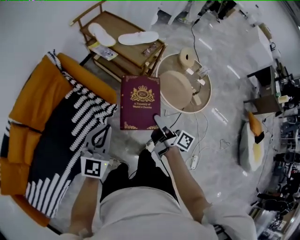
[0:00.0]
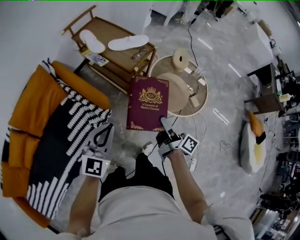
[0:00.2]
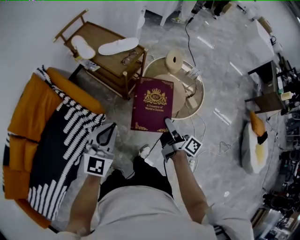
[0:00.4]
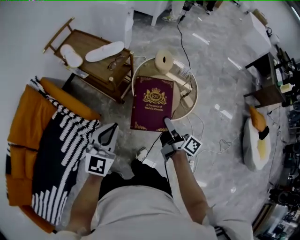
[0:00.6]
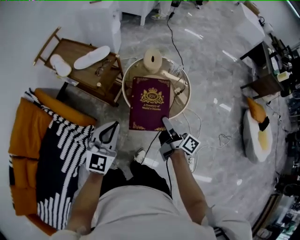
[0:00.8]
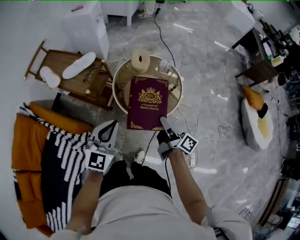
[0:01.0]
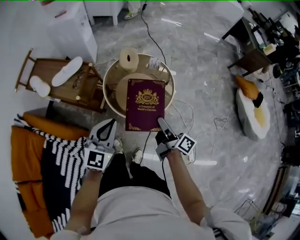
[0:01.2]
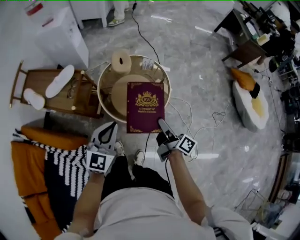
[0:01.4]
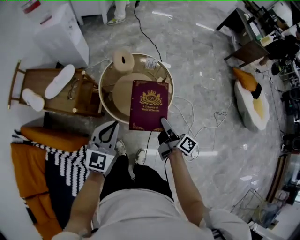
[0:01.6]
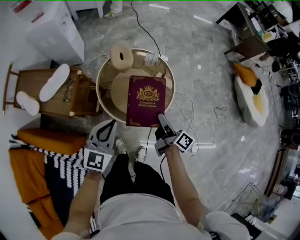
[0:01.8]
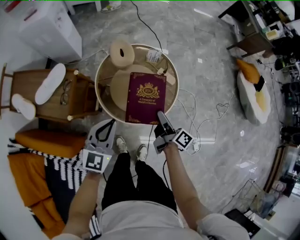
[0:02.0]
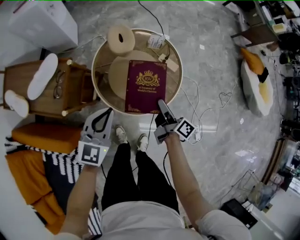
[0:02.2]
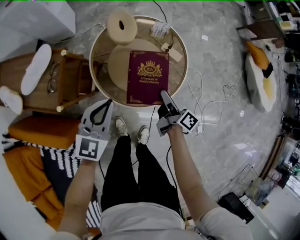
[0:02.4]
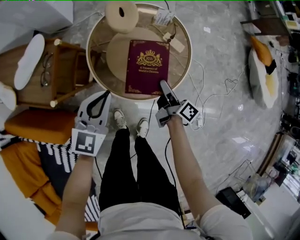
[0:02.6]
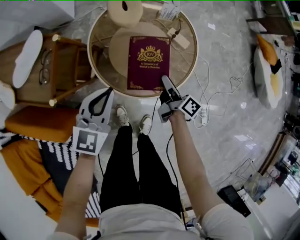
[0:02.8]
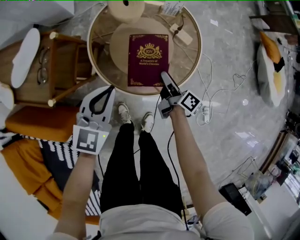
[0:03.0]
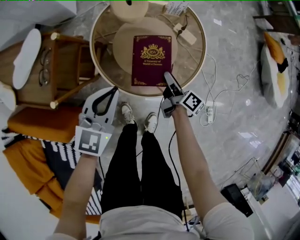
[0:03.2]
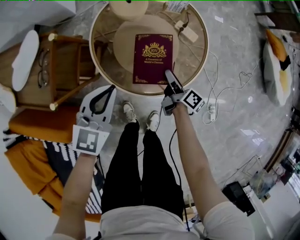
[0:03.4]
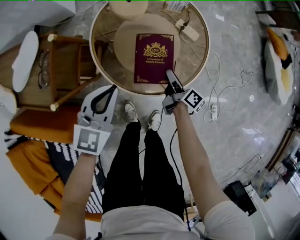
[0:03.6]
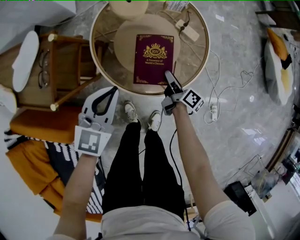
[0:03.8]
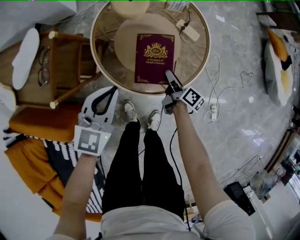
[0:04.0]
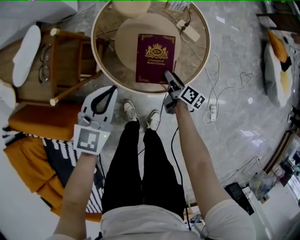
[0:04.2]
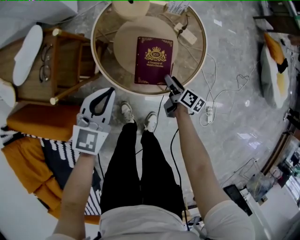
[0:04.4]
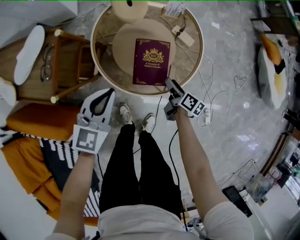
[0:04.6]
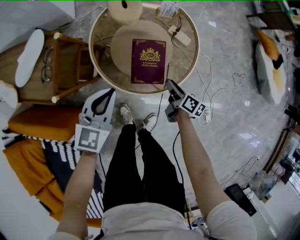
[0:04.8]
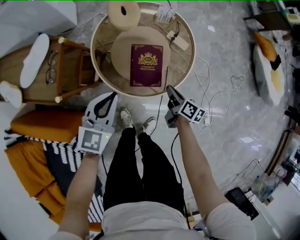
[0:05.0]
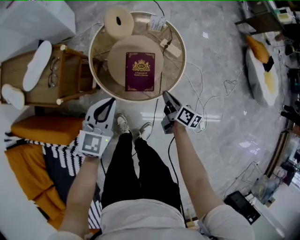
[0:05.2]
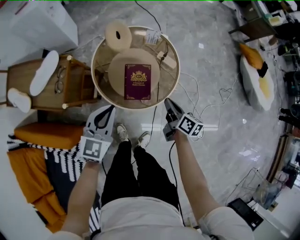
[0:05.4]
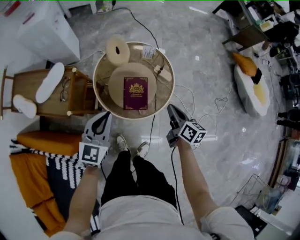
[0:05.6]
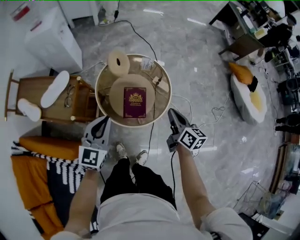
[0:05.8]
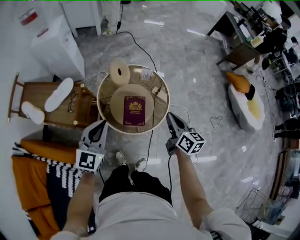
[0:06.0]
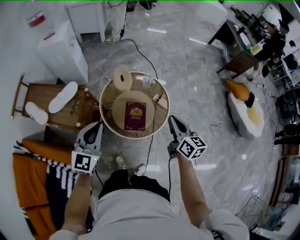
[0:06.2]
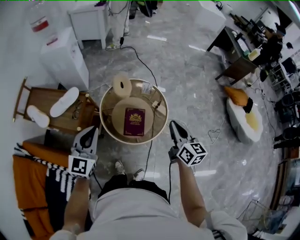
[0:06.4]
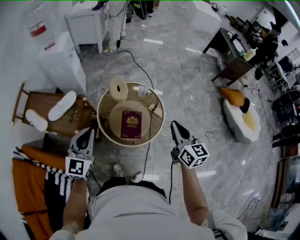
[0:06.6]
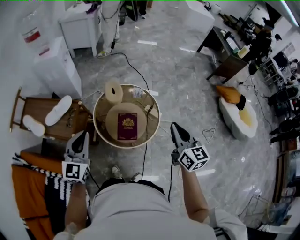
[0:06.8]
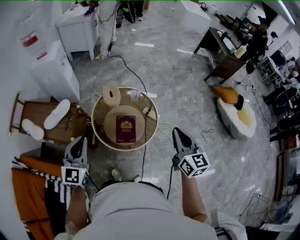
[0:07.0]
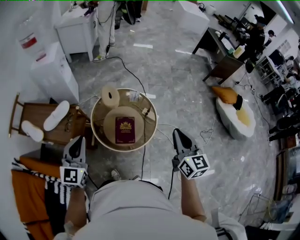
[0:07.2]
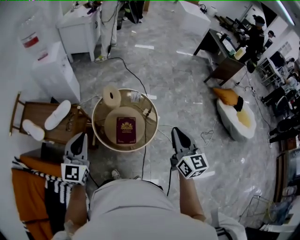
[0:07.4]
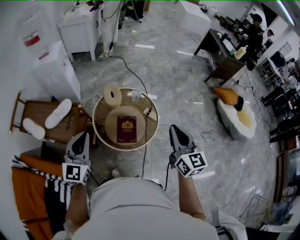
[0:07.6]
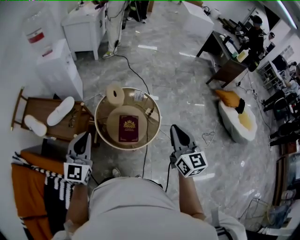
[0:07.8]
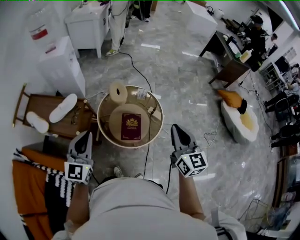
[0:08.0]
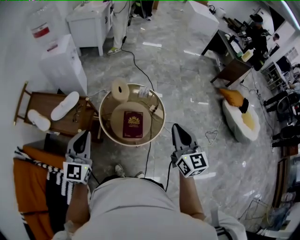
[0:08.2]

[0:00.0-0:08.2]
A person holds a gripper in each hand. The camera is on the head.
0:00.0 to 0:01.6: The pair of grippers is taken roughly 40 cm. The left gripper turns by approximately 30 degrees. The right gripper turns by some 30 degrees.
0:01.6 to 0:03.2: The left gripper is displaced downward and forward by approximately 25 cm. Meanwhile the right gripper goes approximately 30 cm downward.
0:03.2 to 0:05.0: The right gripper heads backward, covering roughly 5 cm, and closes its fingers.
0:05.0 to 0:06.6: The right gripper shifts some 40 cm upward, and twists about 50 degrees counterclockwise, seen from behind. The left gripper shifts approximately 30 cm upward, and turns by about 20 degrees.
0:06.6 to 0:08.2: The right gripper moves upward, about 5 cm. Meanwhile the left gripper changes place by some 5 cm.

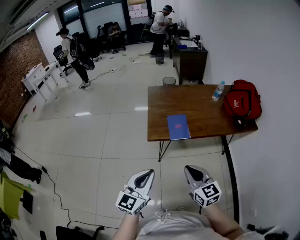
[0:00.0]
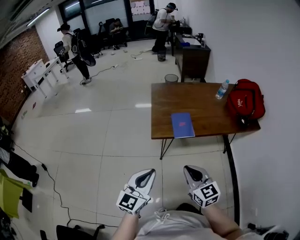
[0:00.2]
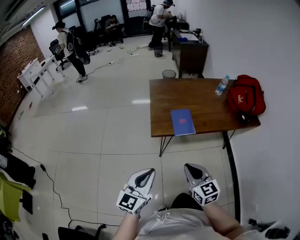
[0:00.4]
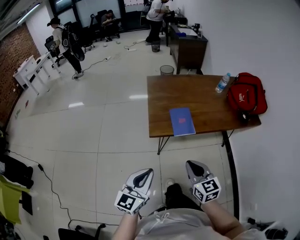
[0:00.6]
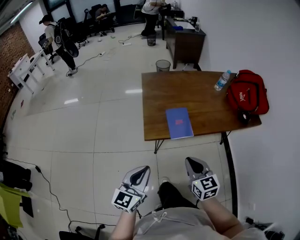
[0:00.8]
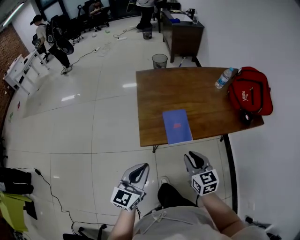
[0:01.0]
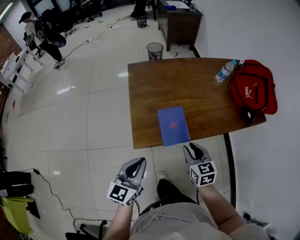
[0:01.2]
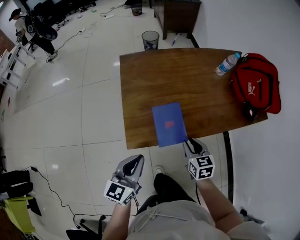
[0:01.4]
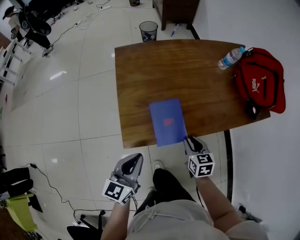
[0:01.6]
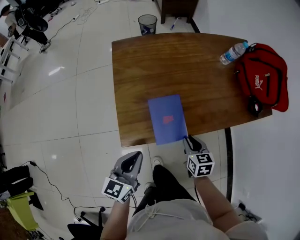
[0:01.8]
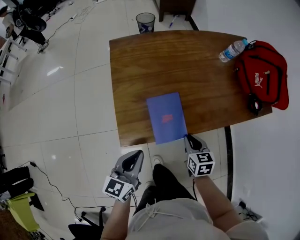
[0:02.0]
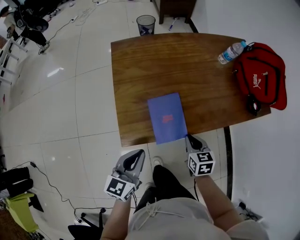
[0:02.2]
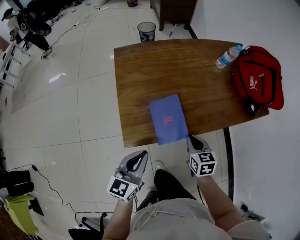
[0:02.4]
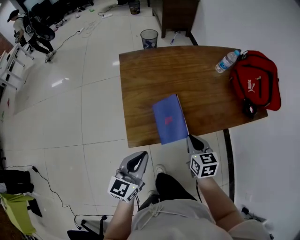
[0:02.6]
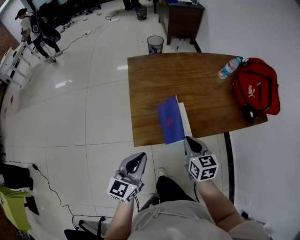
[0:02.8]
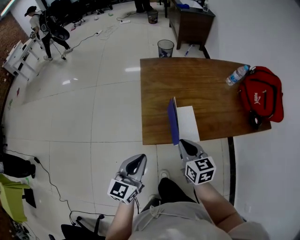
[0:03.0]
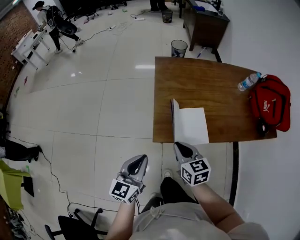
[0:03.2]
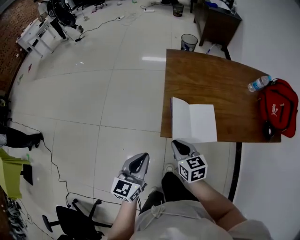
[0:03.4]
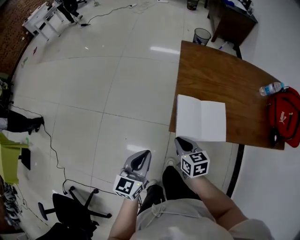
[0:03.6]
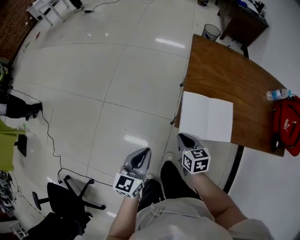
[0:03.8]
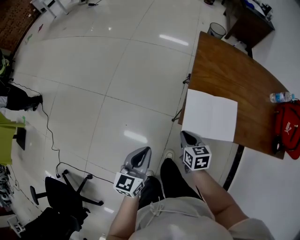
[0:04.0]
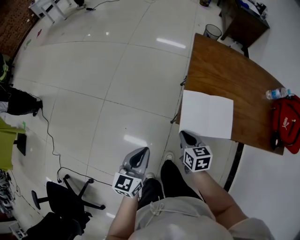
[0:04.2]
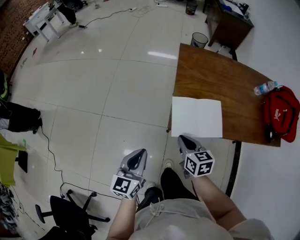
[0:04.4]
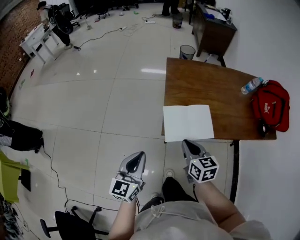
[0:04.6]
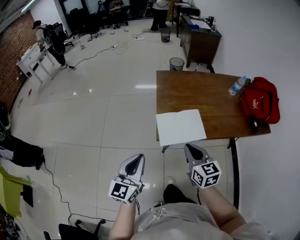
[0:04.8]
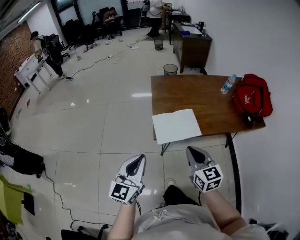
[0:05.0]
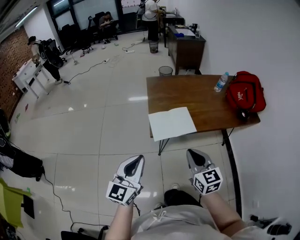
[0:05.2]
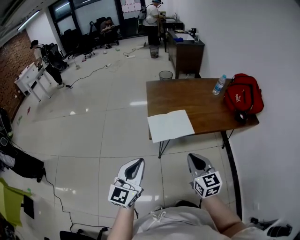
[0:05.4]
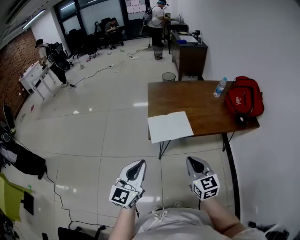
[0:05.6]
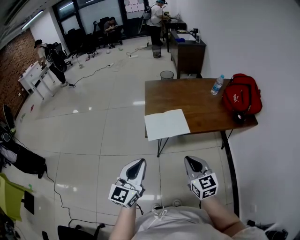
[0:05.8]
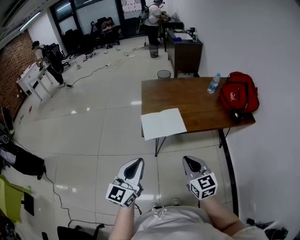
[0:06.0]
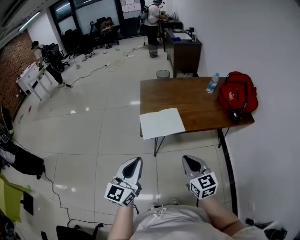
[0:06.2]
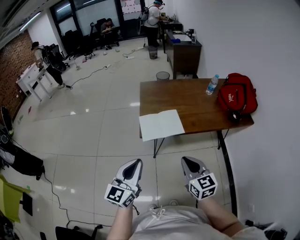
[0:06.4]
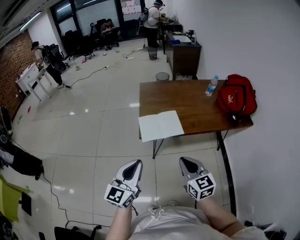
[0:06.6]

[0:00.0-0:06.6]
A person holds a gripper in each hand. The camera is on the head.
0:00.0 to 0:01.6: The two grippers go about 35 cm forward and downward. The right gripper changes its angle by approximately 40 degrees, and opens up, while the left gripper swivels approximately 20 degrees.
0:01.6 to 0:03.2: The left gripper goes roughly 10 cm to the left and backward, while the right gripper moves to the left and upward, approximately 20 cm, changes its angle by about 20 degrees, and closes.
0:03.2 to 0:05.0: The right gripper moves backward and upward, some 15 cm. Meanwhile the left gripper is displaced upward and backward by about 15 cm.
0:05.0 to 0:06.6: The right gripper is displaced backward and to the right by about 10 cm, while the left gripper heads to the right and backward, covering roughly 10 cm.

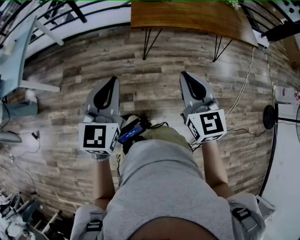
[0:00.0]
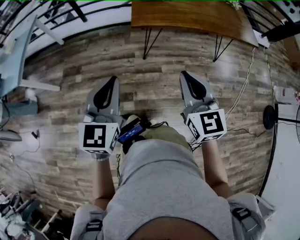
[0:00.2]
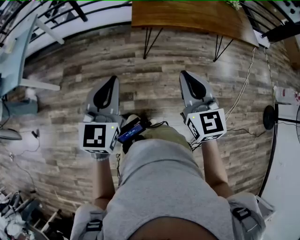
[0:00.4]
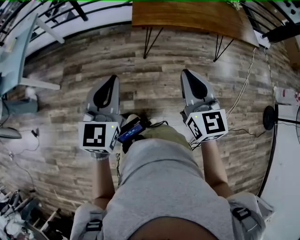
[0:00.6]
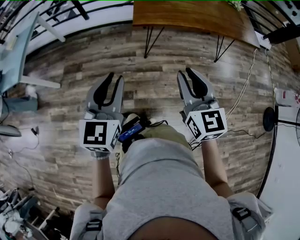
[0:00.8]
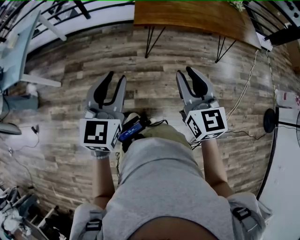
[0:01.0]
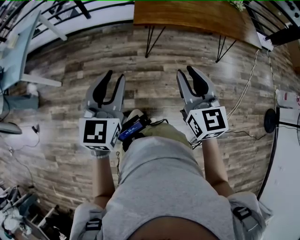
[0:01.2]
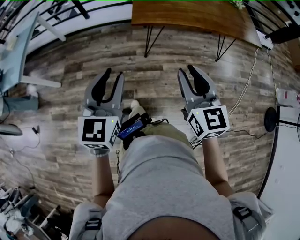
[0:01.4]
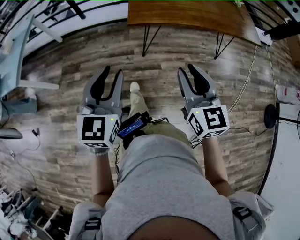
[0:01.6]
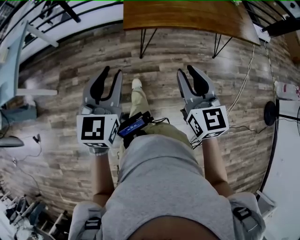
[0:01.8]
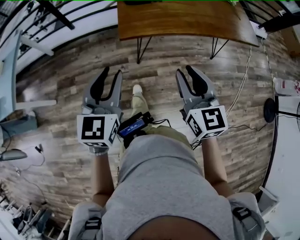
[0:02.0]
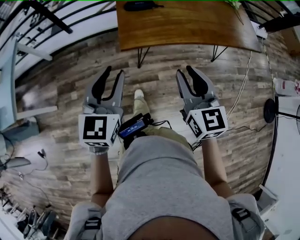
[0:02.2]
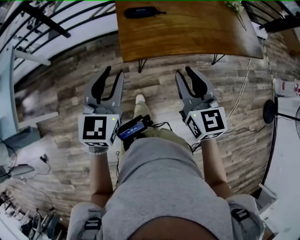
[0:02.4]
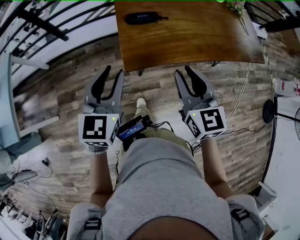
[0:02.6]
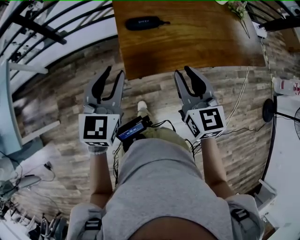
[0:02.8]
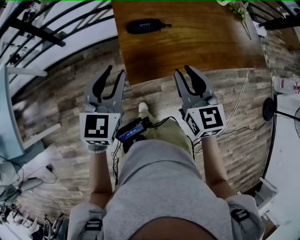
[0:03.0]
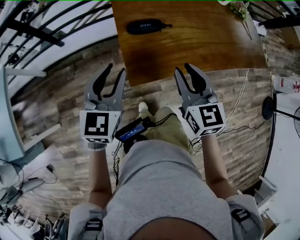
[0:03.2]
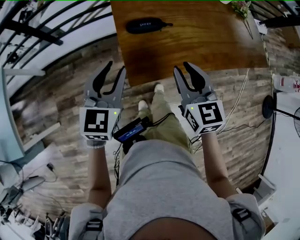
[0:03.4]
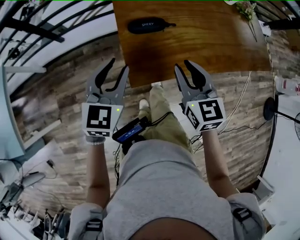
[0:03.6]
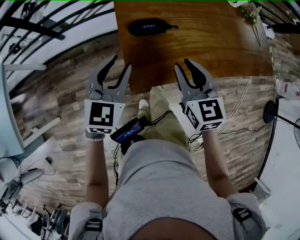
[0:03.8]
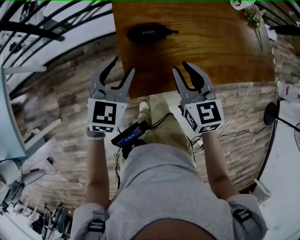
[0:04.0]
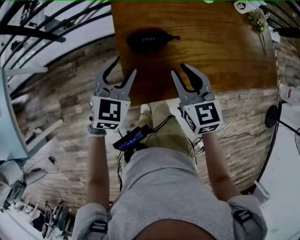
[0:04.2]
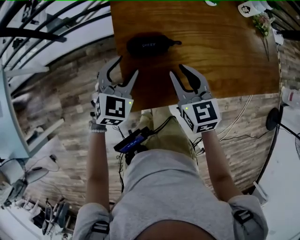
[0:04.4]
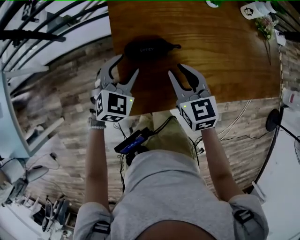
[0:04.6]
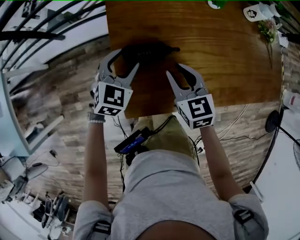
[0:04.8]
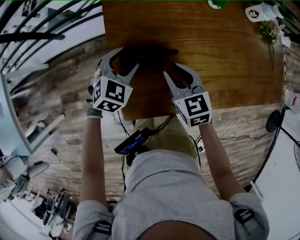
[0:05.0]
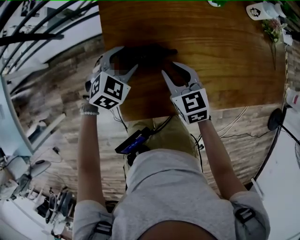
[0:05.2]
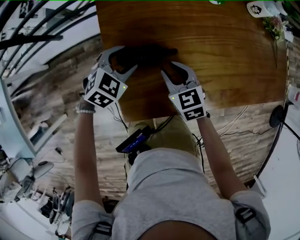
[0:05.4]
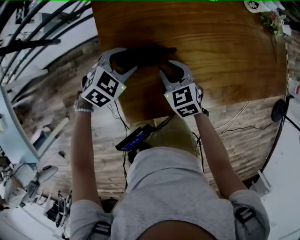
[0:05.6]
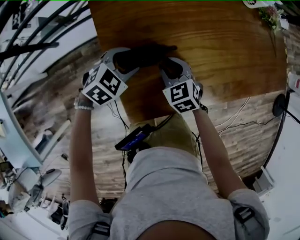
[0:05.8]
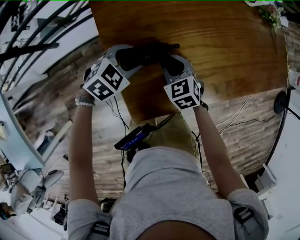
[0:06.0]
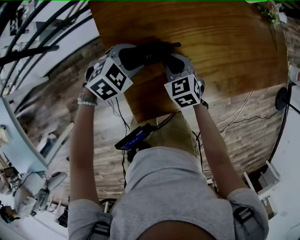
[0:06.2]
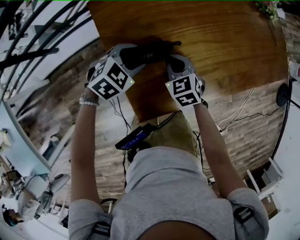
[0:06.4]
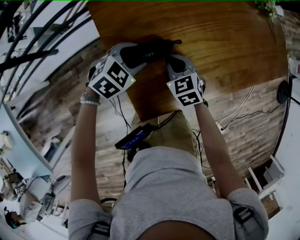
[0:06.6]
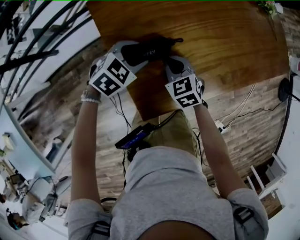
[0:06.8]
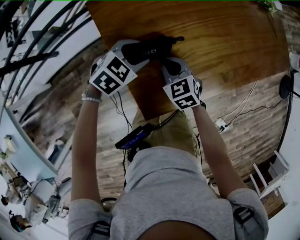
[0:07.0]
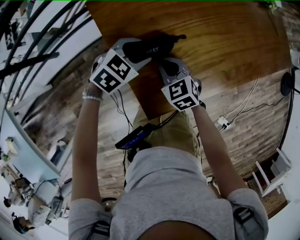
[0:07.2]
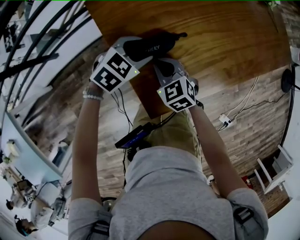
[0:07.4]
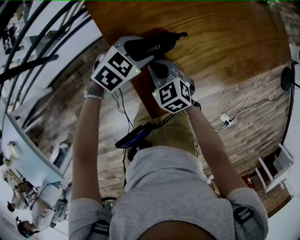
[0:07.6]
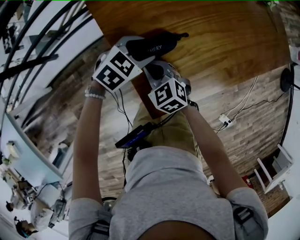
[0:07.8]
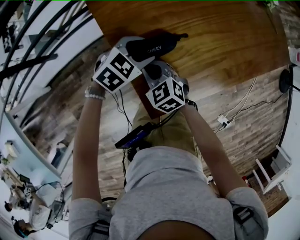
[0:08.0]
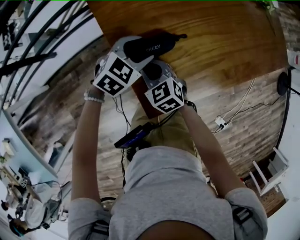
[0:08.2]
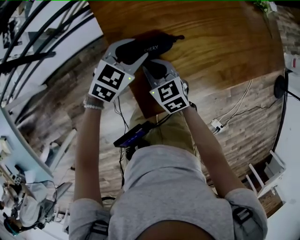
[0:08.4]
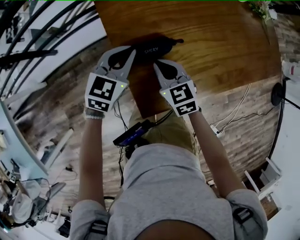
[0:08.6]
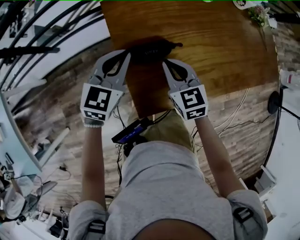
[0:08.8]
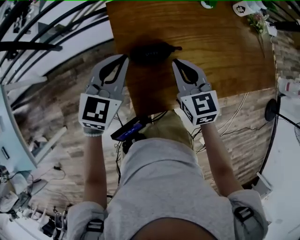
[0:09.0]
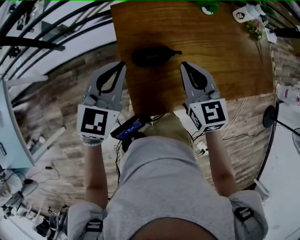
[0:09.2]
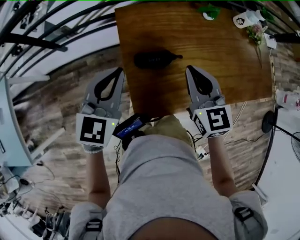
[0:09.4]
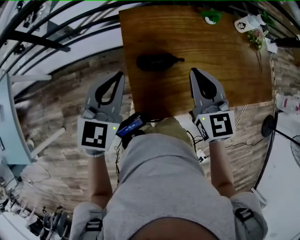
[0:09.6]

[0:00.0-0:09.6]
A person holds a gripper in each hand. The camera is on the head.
0:00.0 to 0:01.6: The right gripper opens its fingers. The left gripper opens up.
0:01.6 to 0:03.2: Both grippers travel together forward, about 35 cm.
0:03.2 to 0:04.8: Both grippers travel together forward and downward, some 25 cm. The left gripper swivels about 20 degrees, and opens up.
0:04.8 to 0:06.4: The left gripper ends up roughly 5 cm from where it was, and rotates about 40 degrees. The right gripper is displaced downward by about 10 cm, and closes.
0:06.4 to 0:08.0: The right gripper travels to the left and backward by about 10 cm.
0:08.0 to 0:09.6: The right gripper moves upward and to the right, approximately 30 cm, and changes its angle by approximately 30 degrees. The left gripper is displaced upward by approximately 20 cm, changes its angle by some 50 degrees, and closes up.
